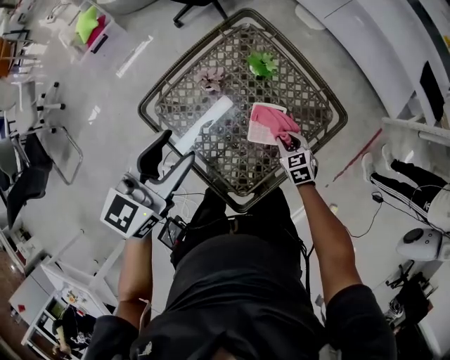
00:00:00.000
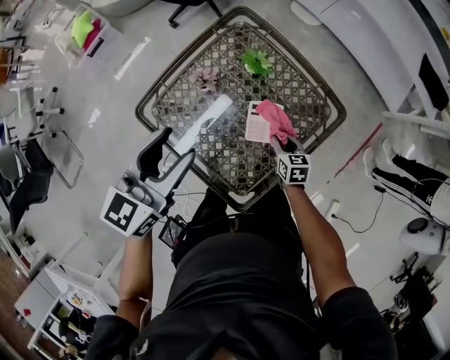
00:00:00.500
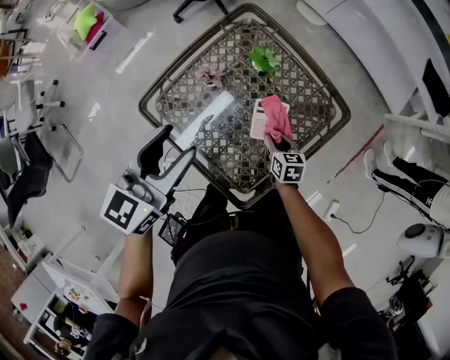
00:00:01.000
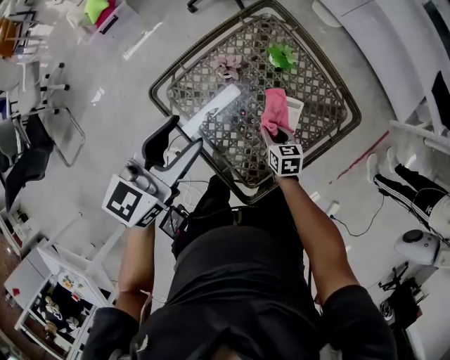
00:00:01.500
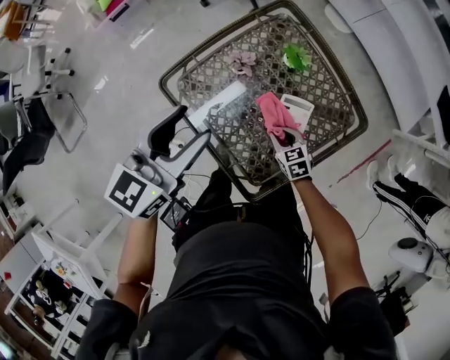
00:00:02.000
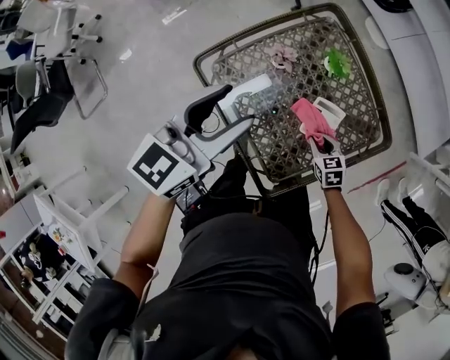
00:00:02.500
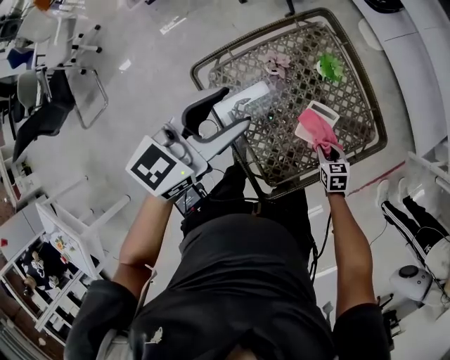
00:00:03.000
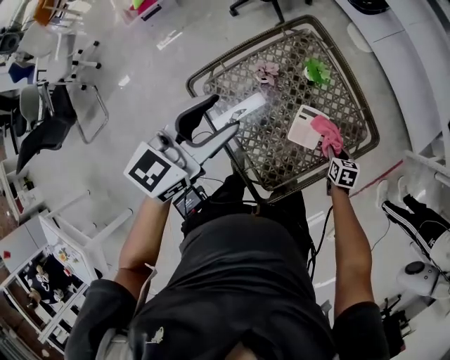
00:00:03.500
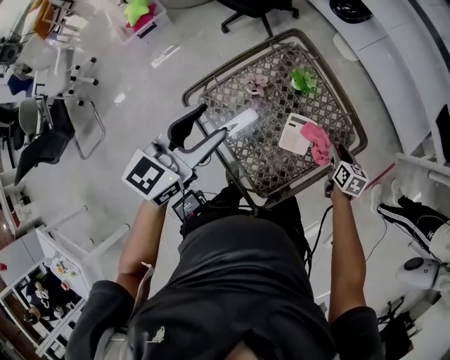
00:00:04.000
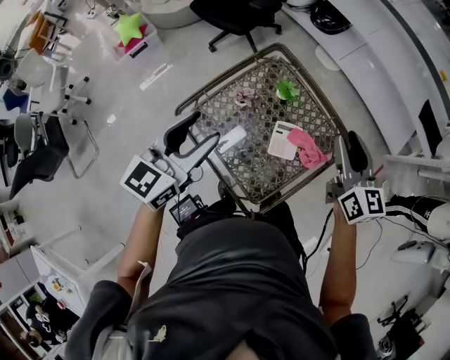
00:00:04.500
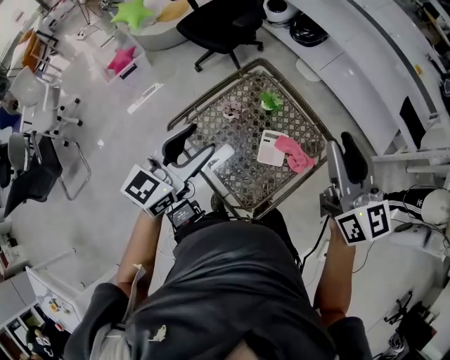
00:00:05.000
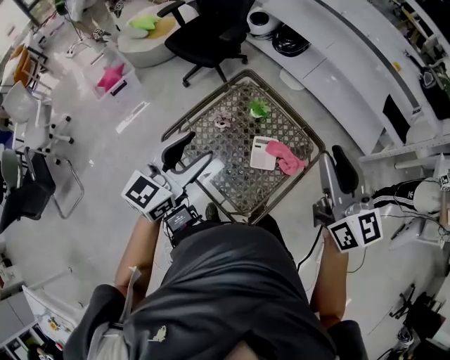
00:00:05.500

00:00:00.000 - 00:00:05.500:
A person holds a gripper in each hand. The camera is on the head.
00:00:00.000 - 00:00:02.000: The right gripper goes roughly 10 cm to the left.
00:00:02.000 - 00:00:03.500: The right gripper shifts some 15 cm to the right, and rotates some 30 degrees.
00:00:03.500 - 00:00:05.500: The right gripper moves upward, roughly 50 cm, and tilts its fingers some 60 degrees upward. The left gripper heads upward and backward, covering about 10 cm.

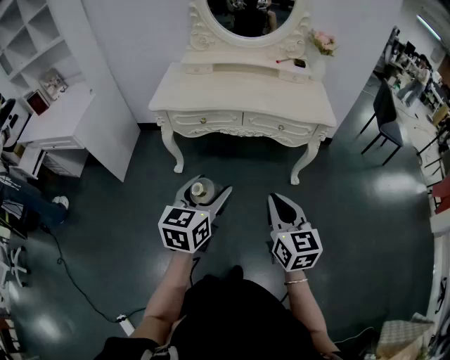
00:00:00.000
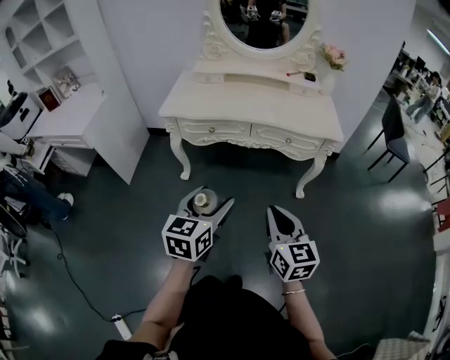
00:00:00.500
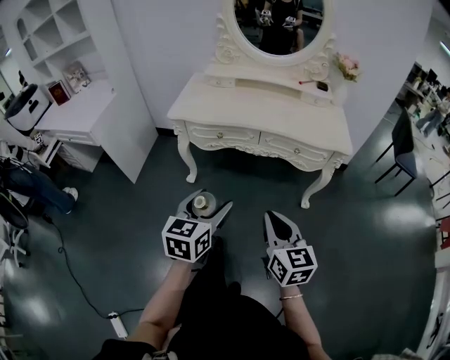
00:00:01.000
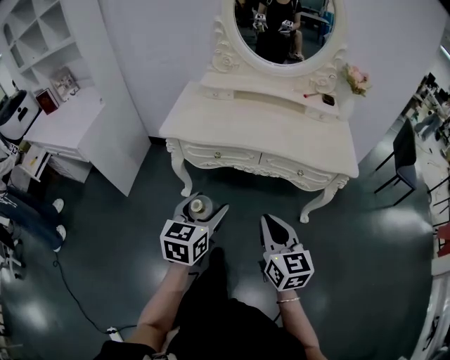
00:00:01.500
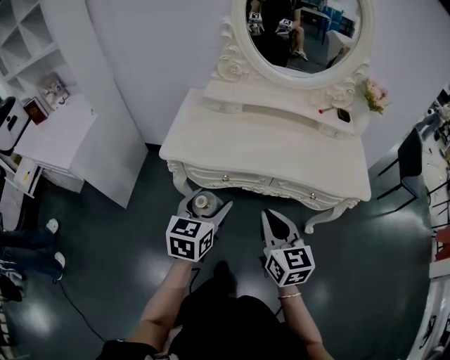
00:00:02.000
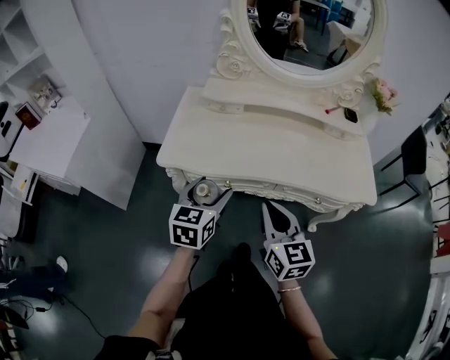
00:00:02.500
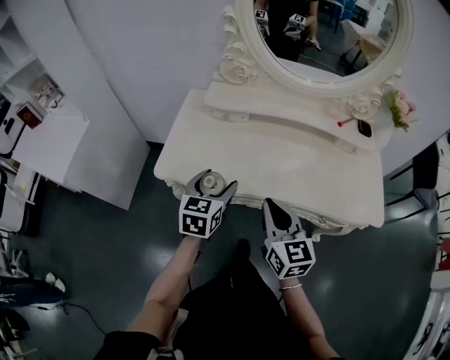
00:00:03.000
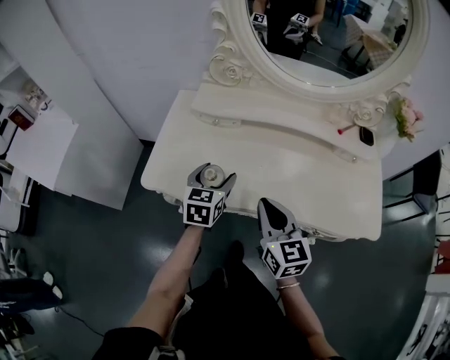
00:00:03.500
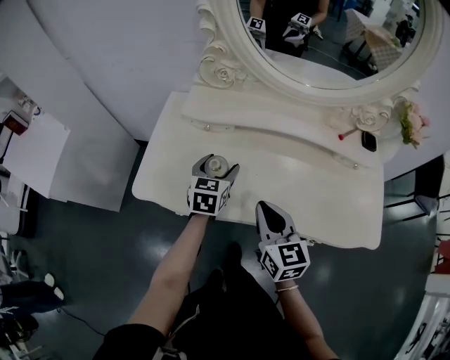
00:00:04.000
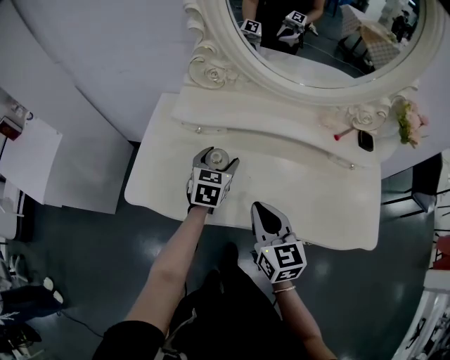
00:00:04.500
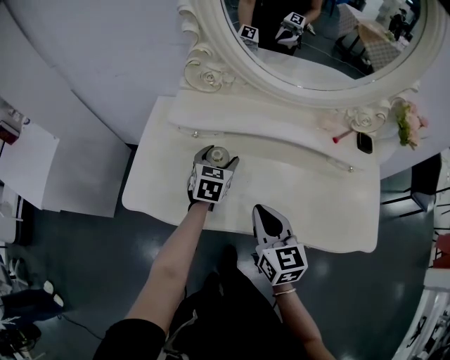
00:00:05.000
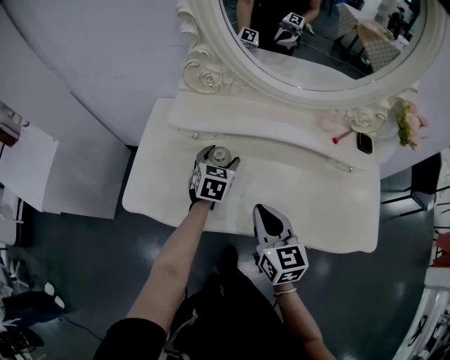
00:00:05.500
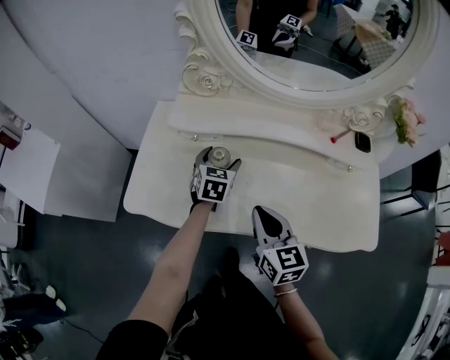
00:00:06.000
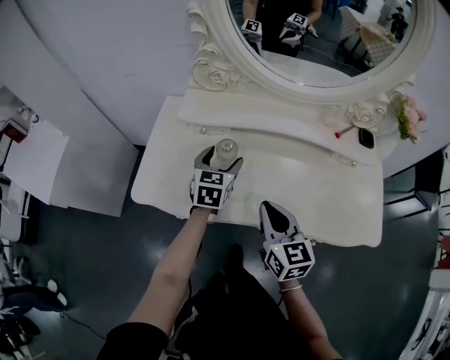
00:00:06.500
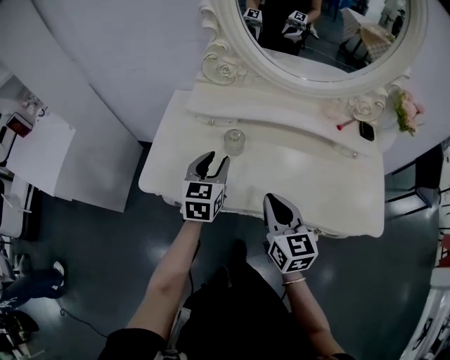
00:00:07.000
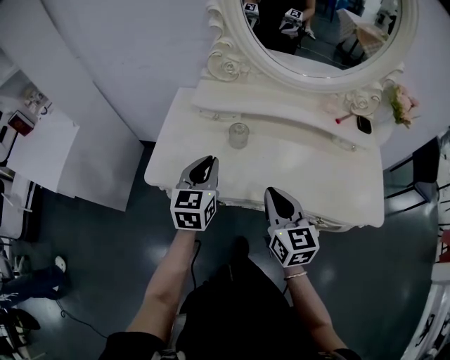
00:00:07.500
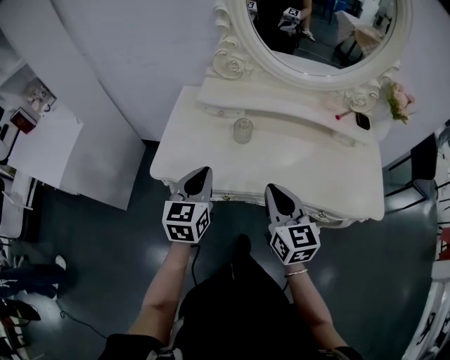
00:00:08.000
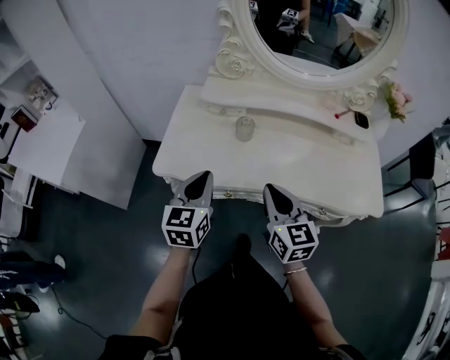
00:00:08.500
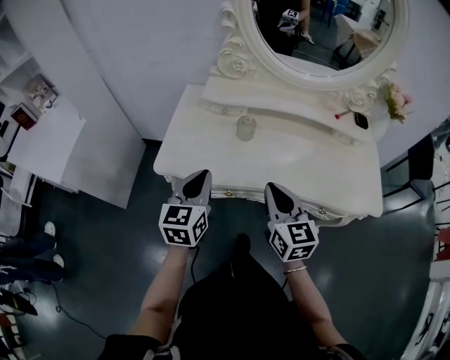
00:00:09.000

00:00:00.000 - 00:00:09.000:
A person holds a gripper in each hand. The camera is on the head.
00:00:00.000 - 00:00:02.000: The grippers both shift forward by approximately 30 cm.
00:00:02.000 - 00:00:04.500: The grippers both shift forward by approximately 30 cm.
00:00:04.500 - 00:00:07.000: The left gripper heads backward and upward, covering roughly 10 cm, and closes up.
00:00:07.000 - 00:00:09.000: The right gripper goes roughly 5 cm backward. The left gripper travels backward and to the left by about 15 cm, and closes up.

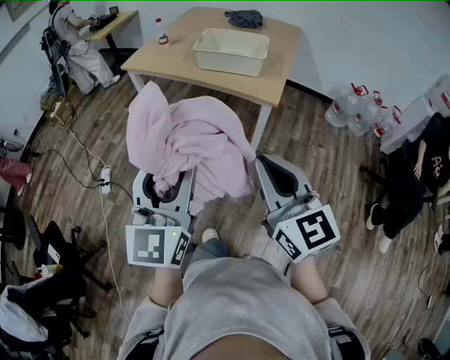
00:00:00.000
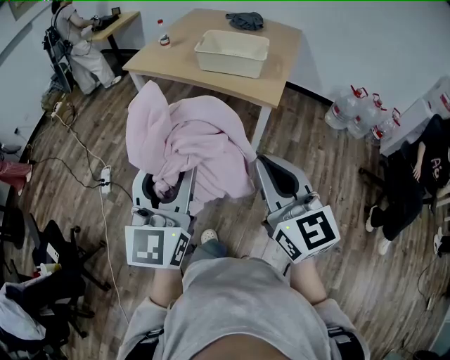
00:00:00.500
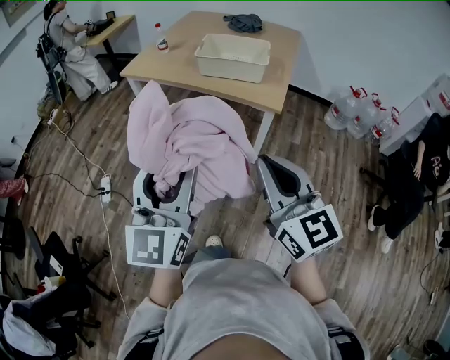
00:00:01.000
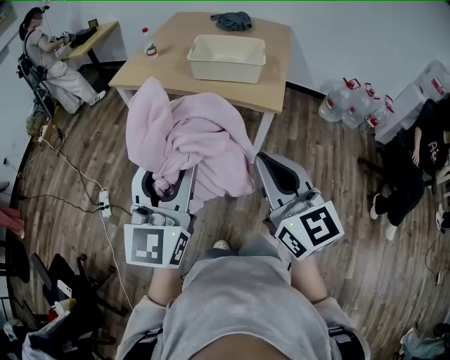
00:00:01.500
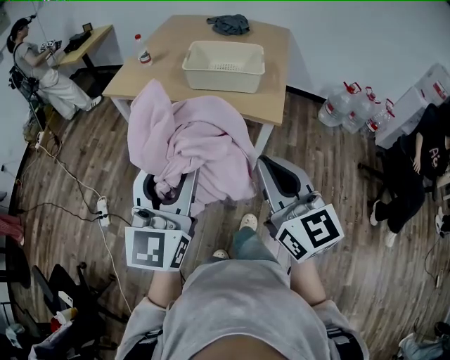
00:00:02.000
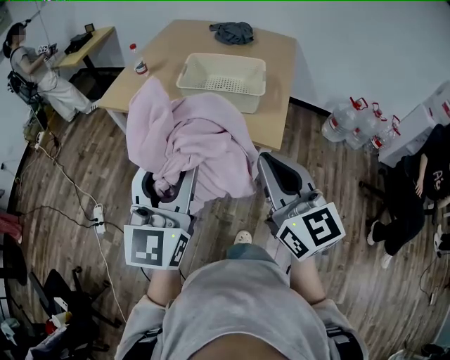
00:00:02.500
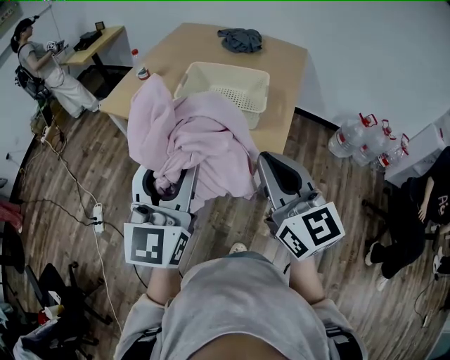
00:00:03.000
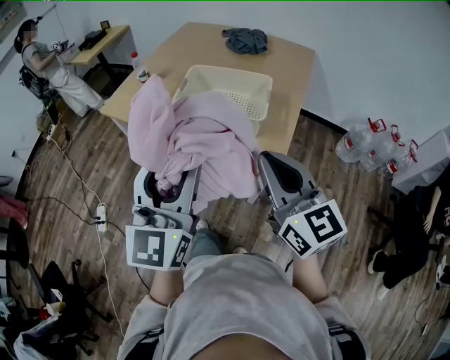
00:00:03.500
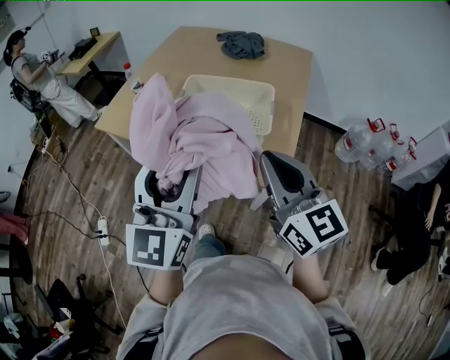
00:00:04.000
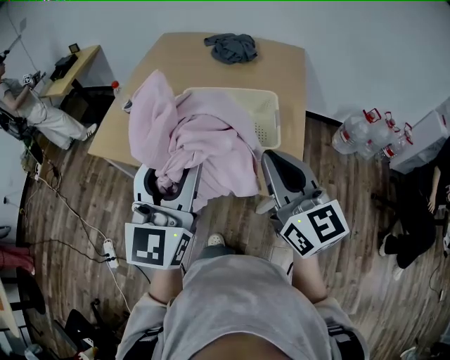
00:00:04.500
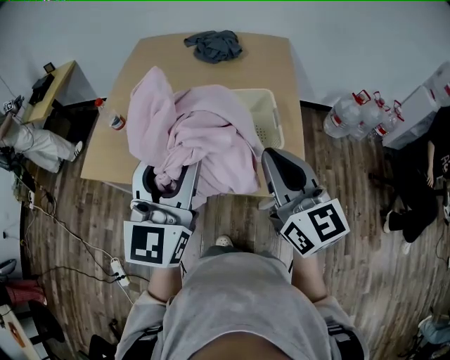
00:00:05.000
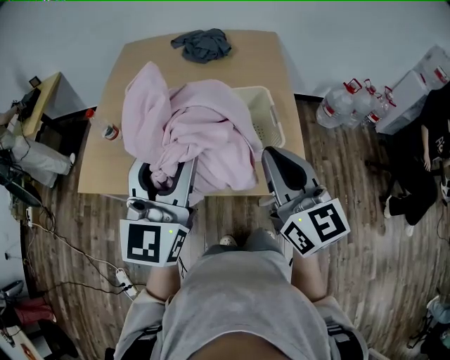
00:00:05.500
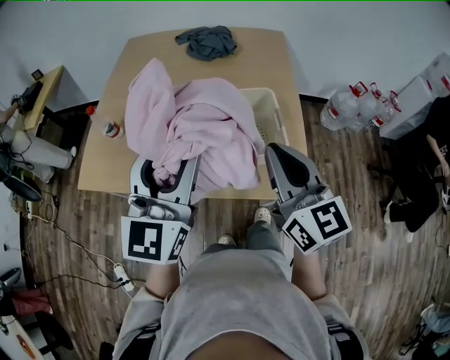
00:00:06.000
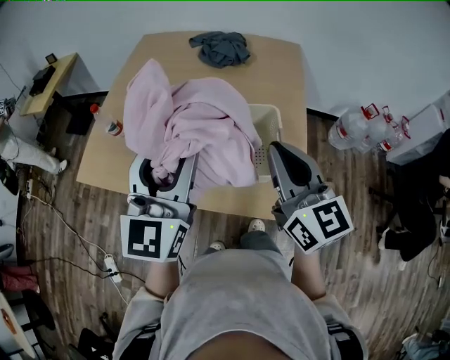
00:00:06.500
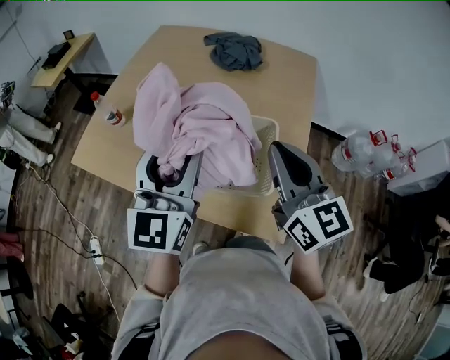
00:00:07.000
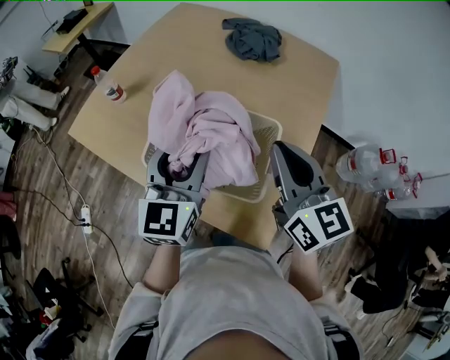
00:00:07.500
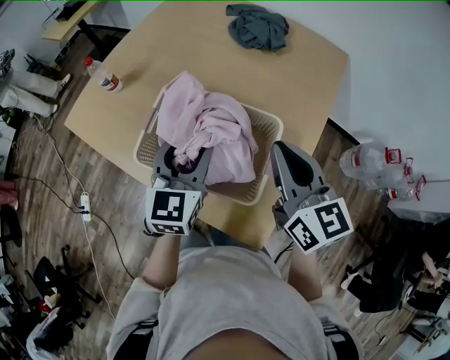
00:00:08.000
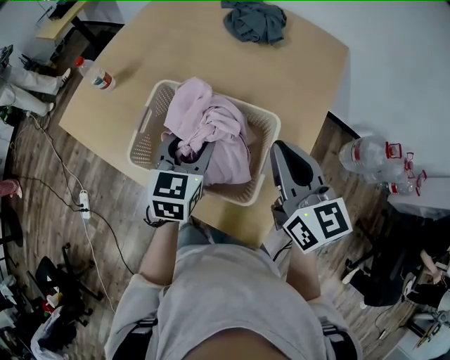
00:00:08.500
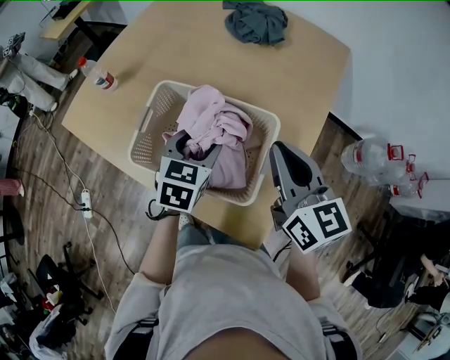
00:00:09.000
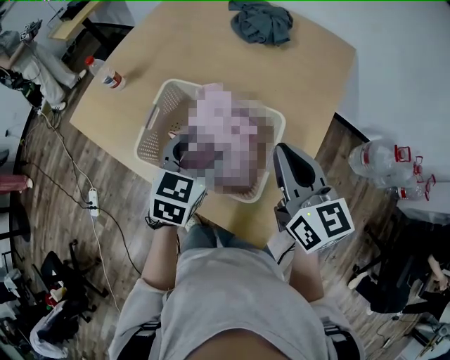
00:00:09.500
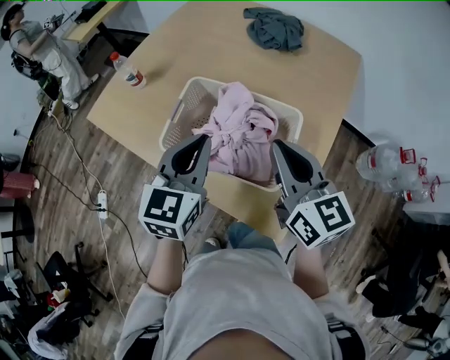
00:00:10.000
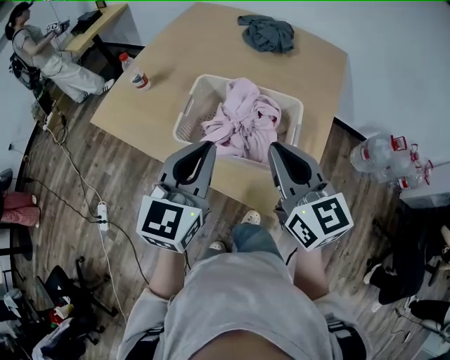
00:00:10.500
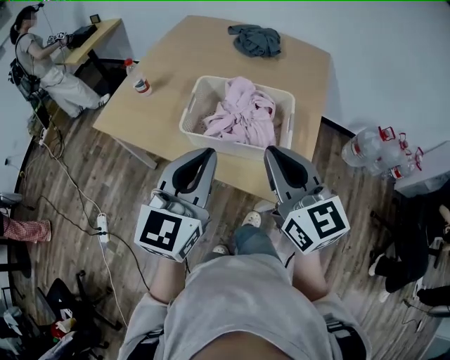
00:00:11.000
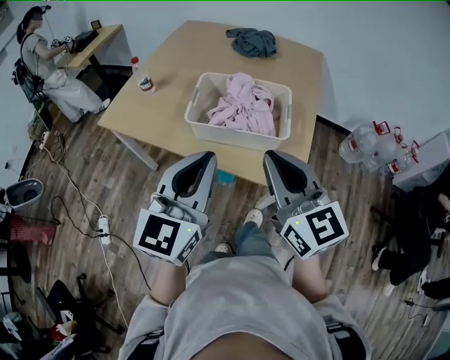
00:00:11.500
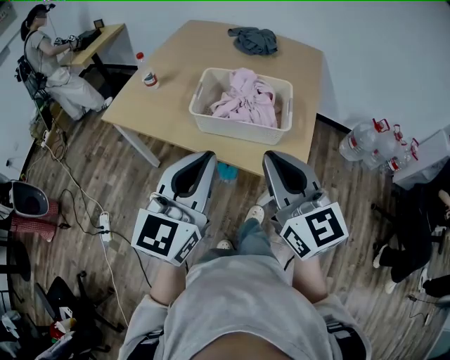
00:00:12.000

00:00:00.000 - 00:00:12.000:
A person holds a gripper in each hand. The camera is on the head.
00:00:00.000 - 00:00:02.000: The grippers both shift forward by about 15 cm.
00:00:02.000 - 00:00:04.000: The right gripper moves forward, about 30 cm. The left gripper heads forward and to the right, covering about 30 cm.
00:00:04.000 - 00:00:06.000: The grippers both shift forward and to the left by roughly 20 cm. The right gripper turns by roughly 20 degrees.
00:00:06.000 - 00:00:08.000: The left gripper moves roughly 25 cm, and swivels roughly 30 degrees. Meanwhile the right gripper shifts by some 20 cm, and turns by about 30 degrees.
00:00:08.000 - 00:00:10.000: The left gripper goes some 5 cm backward, goes downward and returns, roughly 10 cm each way, and closes its fingers. The right gripper shifts by about 5 cm.
00:00:10.000 - 00:00:12.000: The left gripper shifts roughly 25 cm backward, and turns by approximately 20 degrees, while the right gripper shifts approximately 30 cm backward and to the left.
